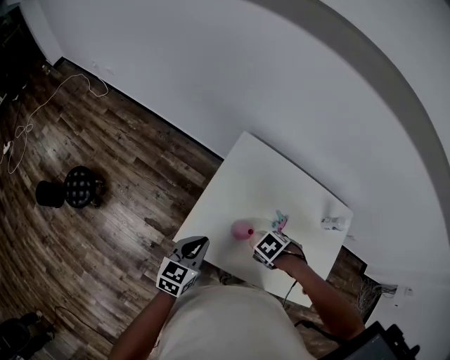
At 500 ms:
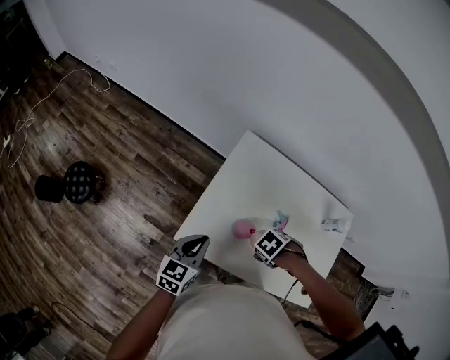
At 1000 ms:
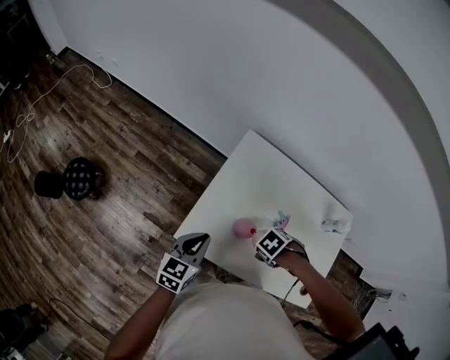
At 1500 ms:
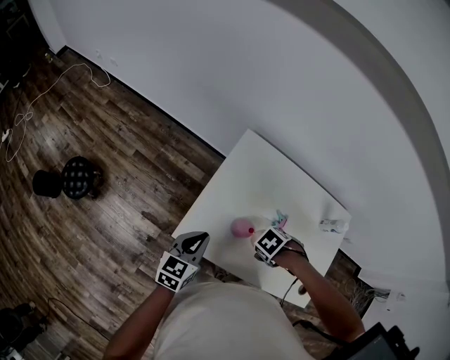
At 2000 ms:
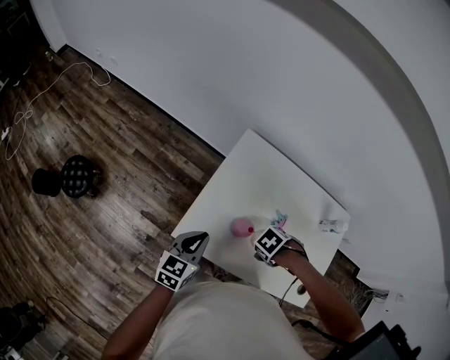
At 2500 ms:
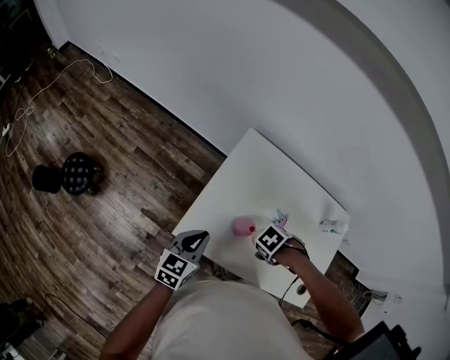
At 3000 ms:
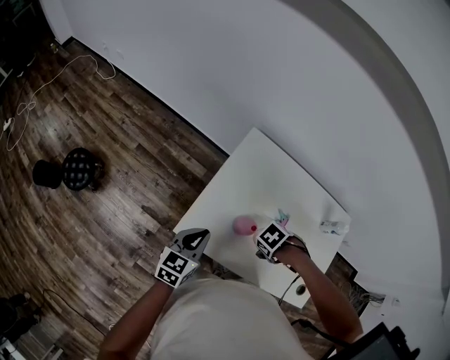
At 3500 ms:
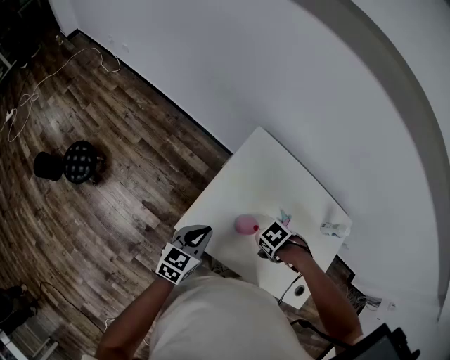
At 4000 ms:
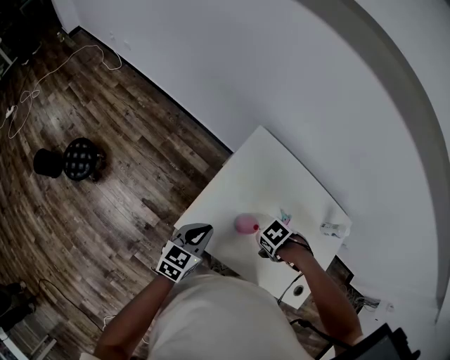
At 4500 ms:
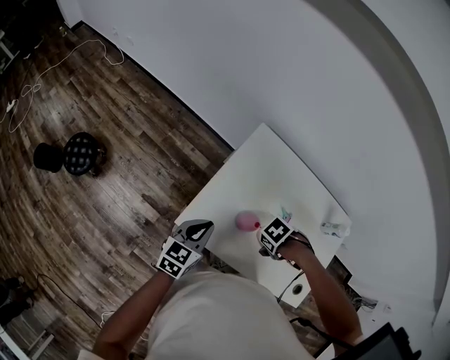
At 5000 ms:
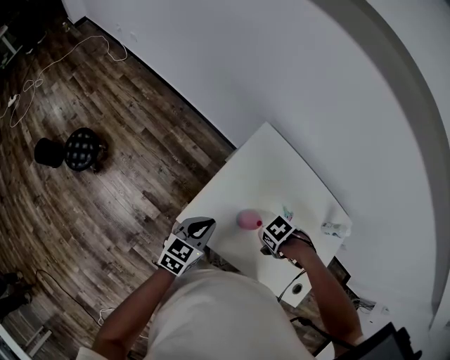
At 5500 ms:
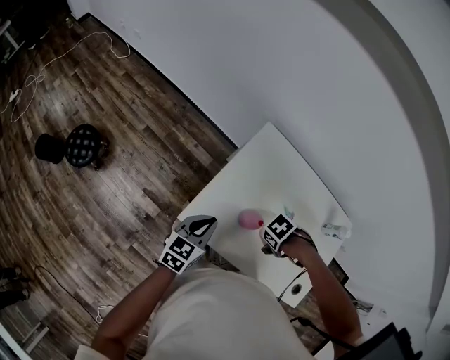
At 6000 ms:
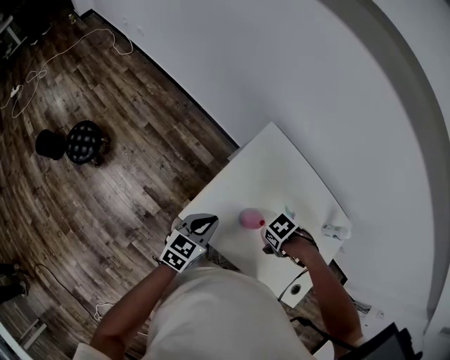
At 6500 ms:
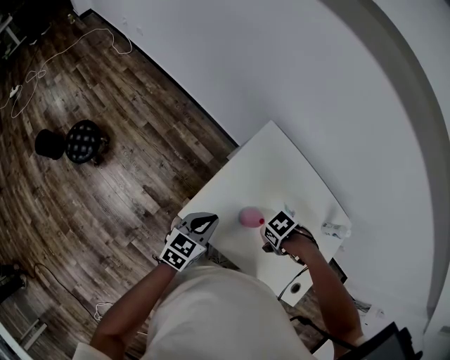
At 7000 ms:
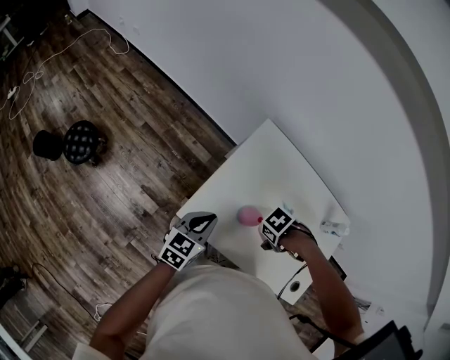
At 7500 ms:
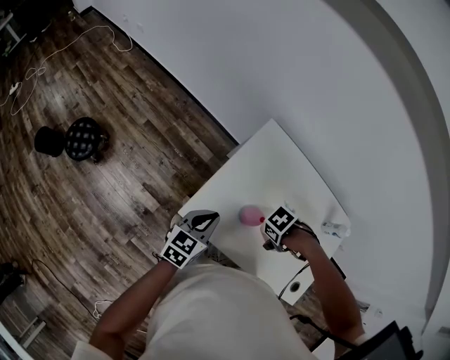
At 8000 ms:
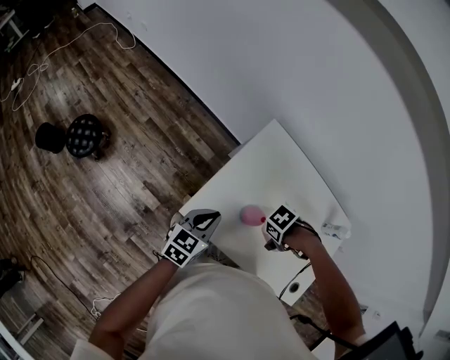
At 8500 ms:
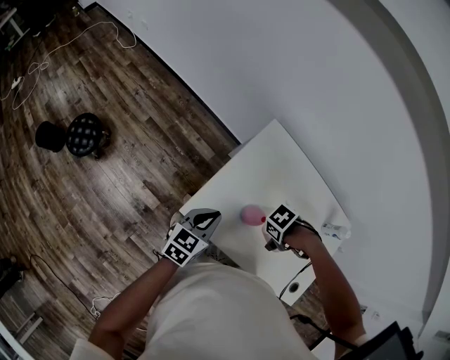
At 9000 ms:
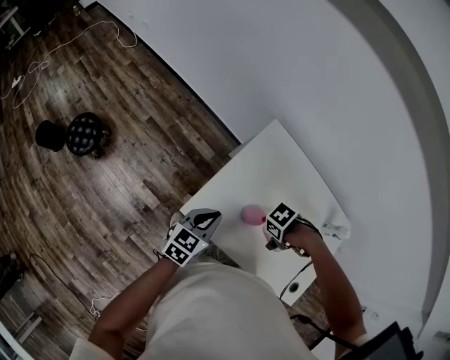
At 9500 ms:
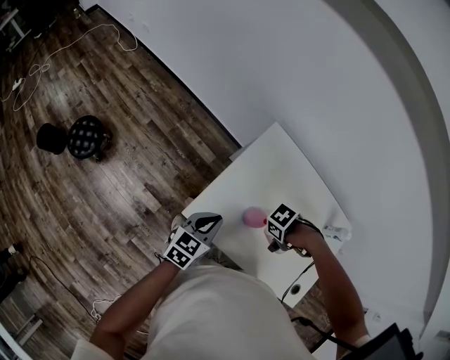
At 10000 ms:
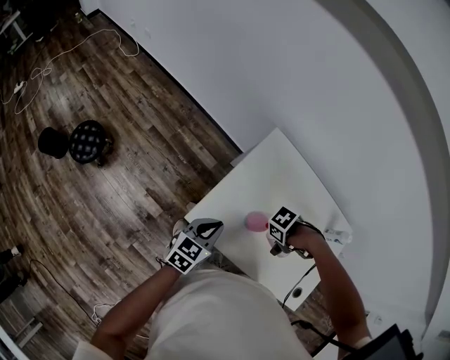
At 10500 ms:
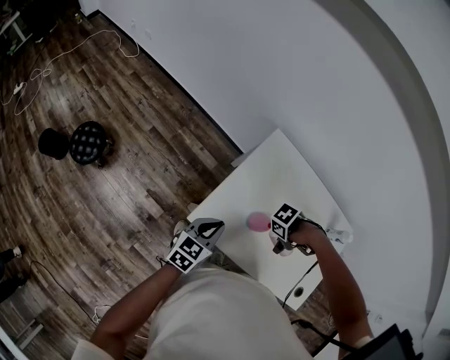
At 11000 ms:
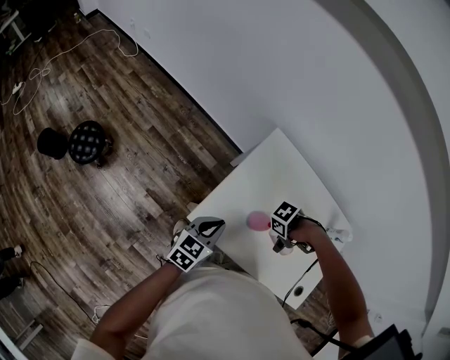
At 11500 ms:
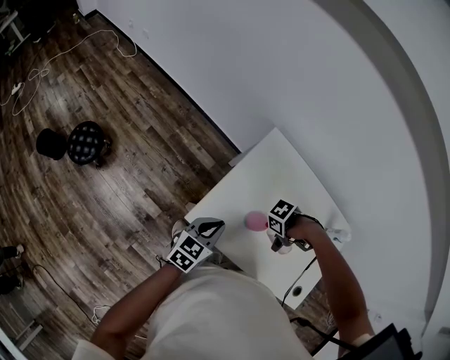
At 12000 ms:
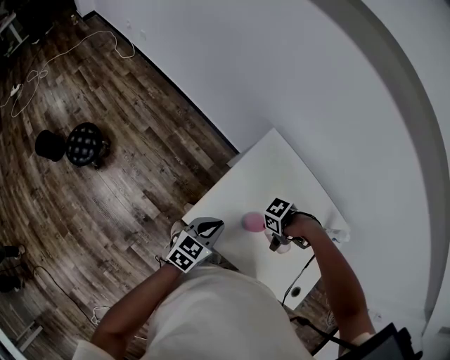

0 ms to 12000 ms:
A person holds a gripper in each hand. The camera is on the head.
0 ms to 4000 ms: The grippers make only small movements.
4000 ms to 6000 ms: The two grippers keep their place.
6000 ms to 12000 ms: The grippers move only a little.

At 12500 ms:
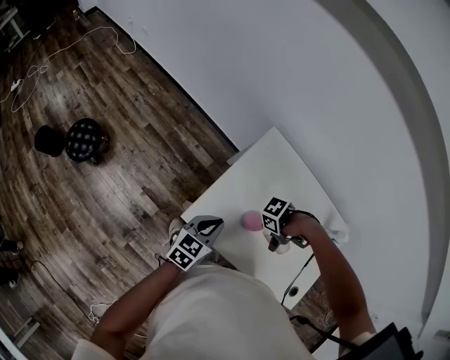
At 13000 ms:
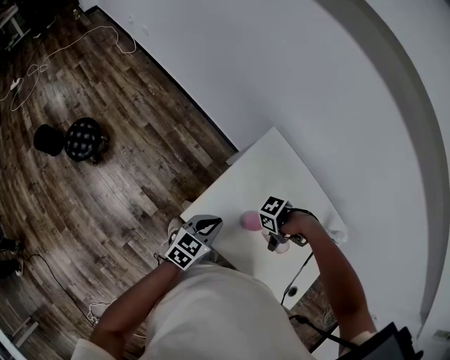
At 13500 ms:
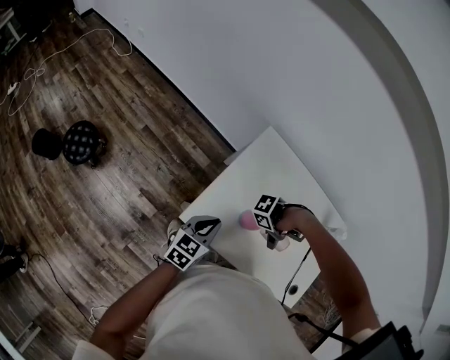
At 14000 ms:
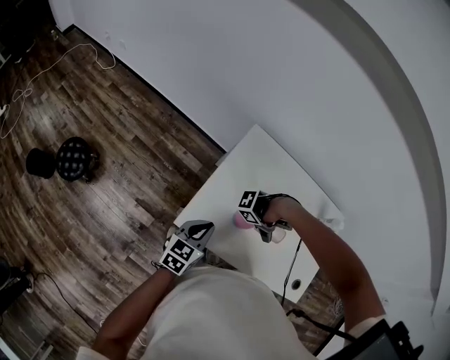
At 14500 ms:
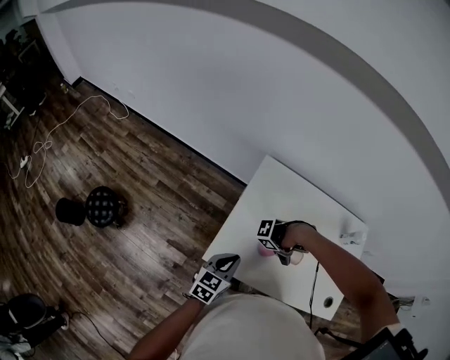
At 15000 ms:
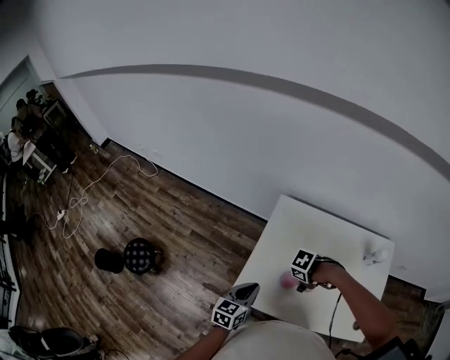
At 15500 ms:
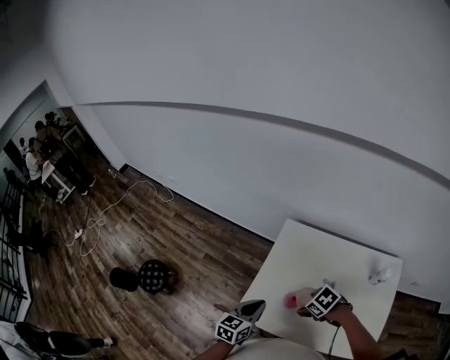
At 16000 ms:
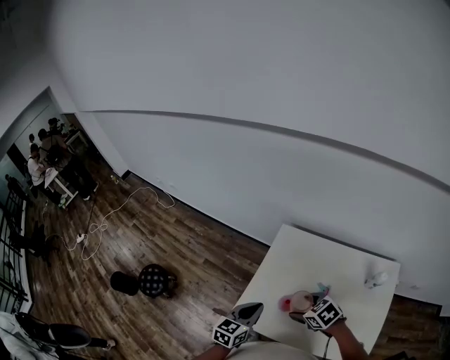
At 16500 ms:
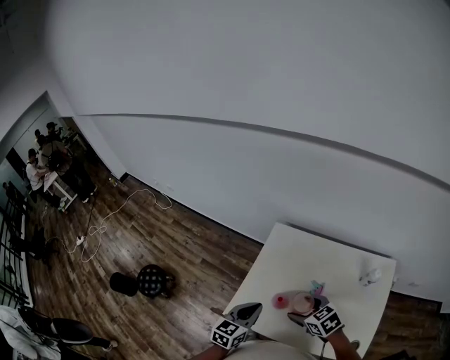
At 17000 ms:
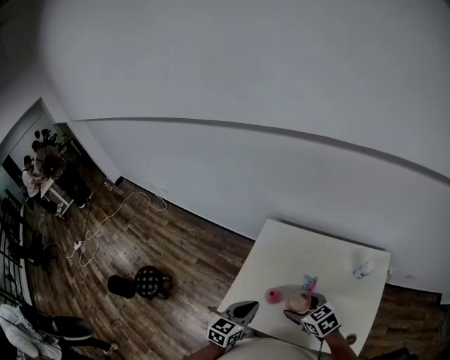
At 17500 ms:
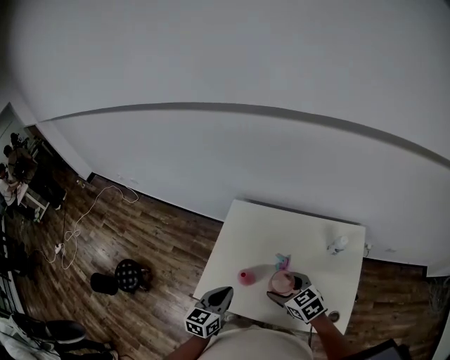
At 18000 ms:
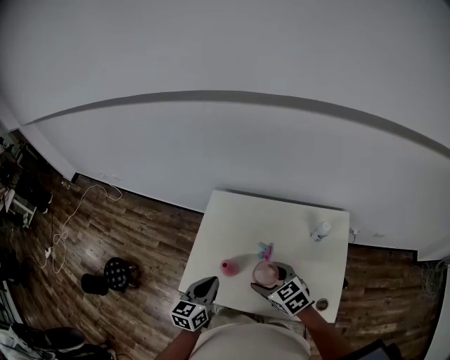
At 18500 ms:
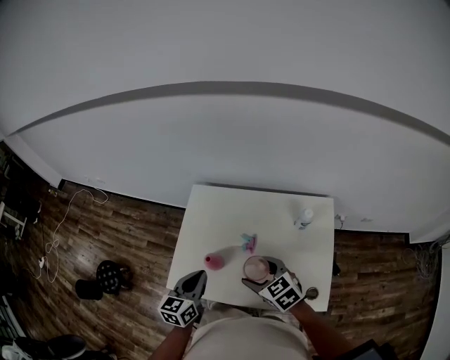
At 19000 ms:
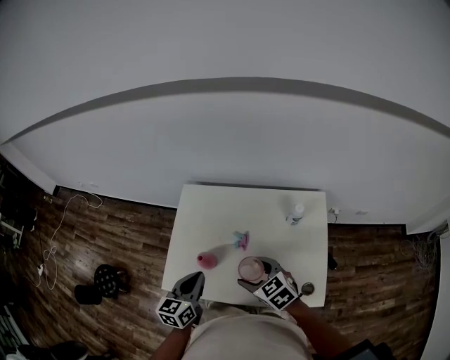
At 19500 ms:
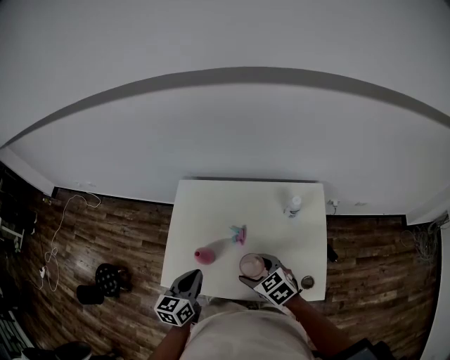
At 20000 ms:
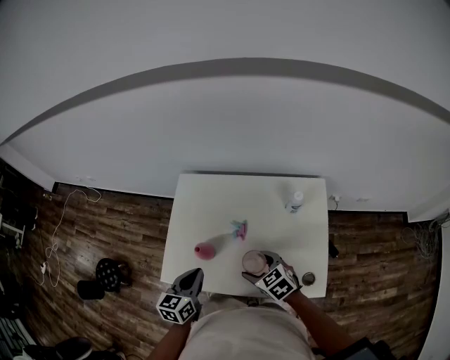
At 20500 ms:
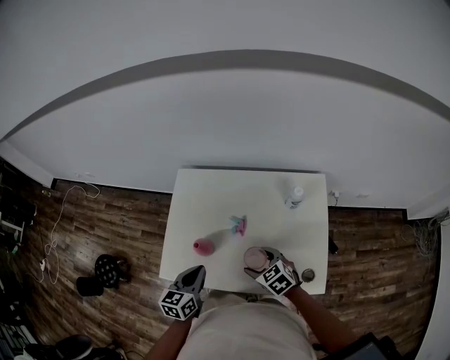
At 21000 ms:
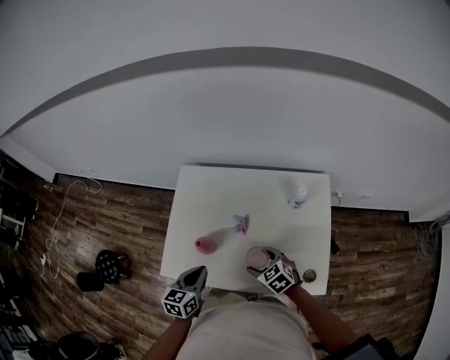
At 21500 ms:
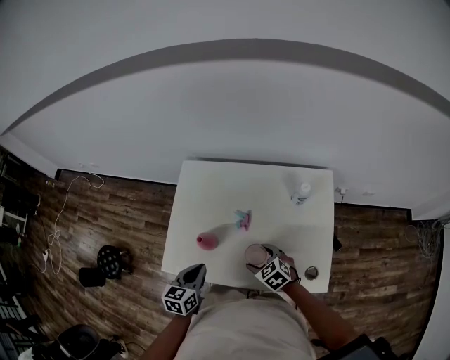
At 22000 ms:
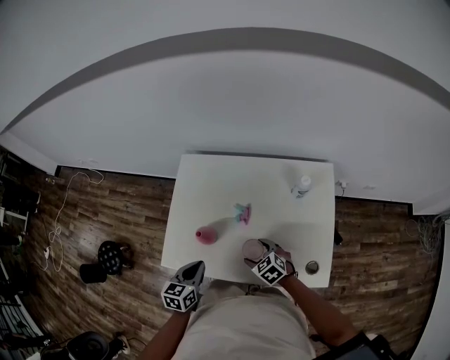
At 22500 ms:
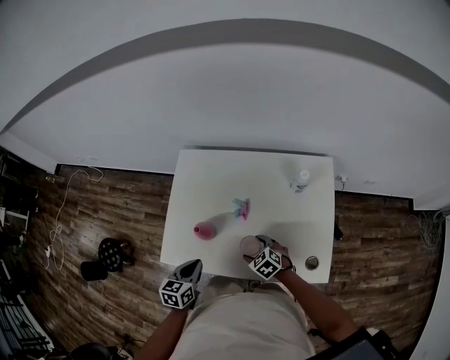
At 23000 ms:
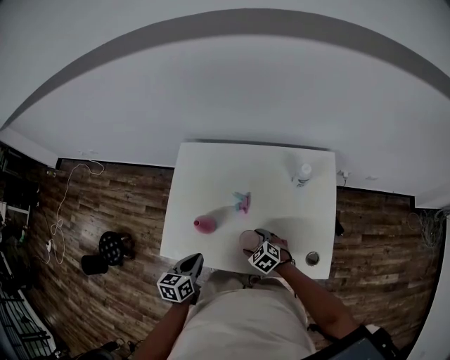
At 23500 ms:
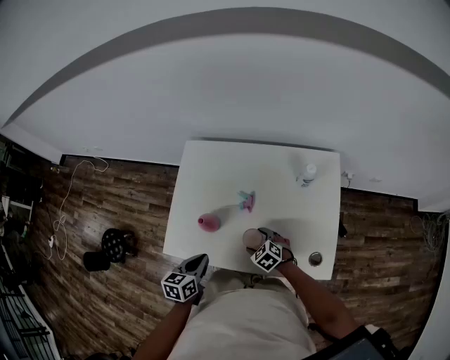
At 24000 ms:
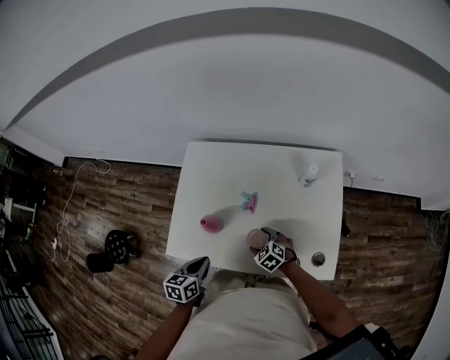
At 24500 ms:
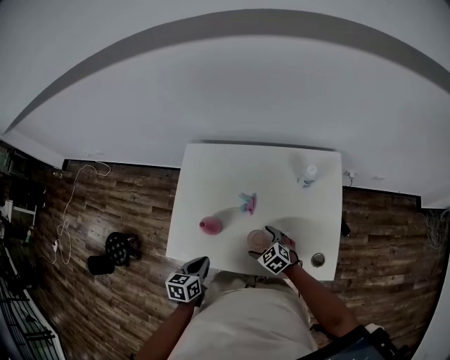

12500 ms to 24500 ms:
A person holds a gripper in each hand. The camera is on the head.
12500 ms to 14500 ms: The grippers make only small movements.
14500 ms to 16500 ms: Both grippers move upward, roughly 10 cm. The right gripper rotates some 100 degrees.
16500 ms to 18500 ms: The left gripper goes some 10 cm to the right, while the right gripper goes some 15 cm to the right and backward.
18500 ms to 20500 ms: The right gripper heads downward, covering approximately 10 cm. The left gripper moves downward, roughly 5 cm.
20500 ms to 22500 ms: The right gripper shifts some 10 cm downward, while the left gripper is displaced downward by approximately 5 cm.
22500 ms to 24500 ms: The grippers move only a little.

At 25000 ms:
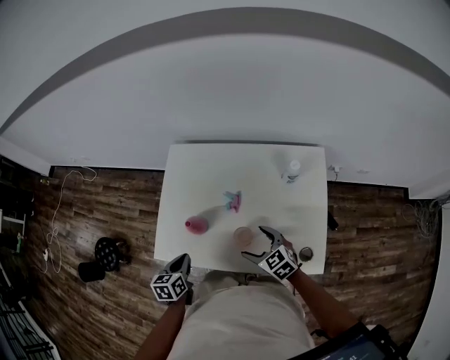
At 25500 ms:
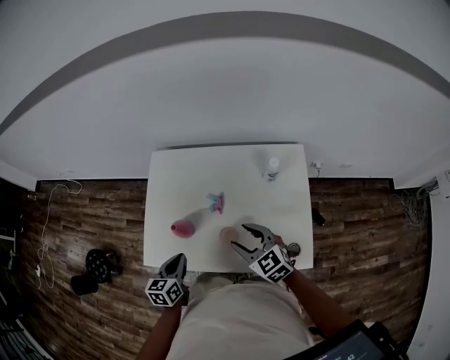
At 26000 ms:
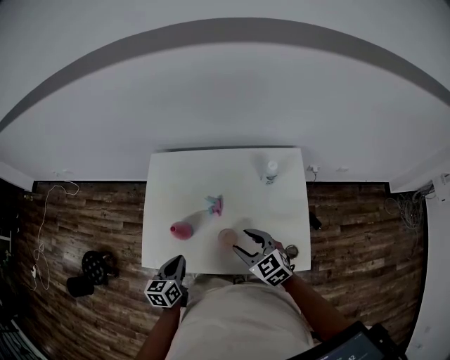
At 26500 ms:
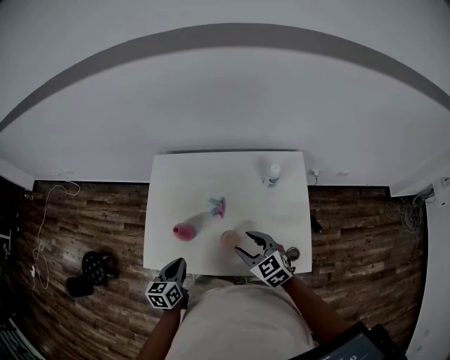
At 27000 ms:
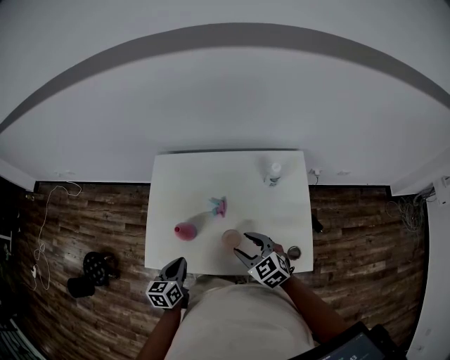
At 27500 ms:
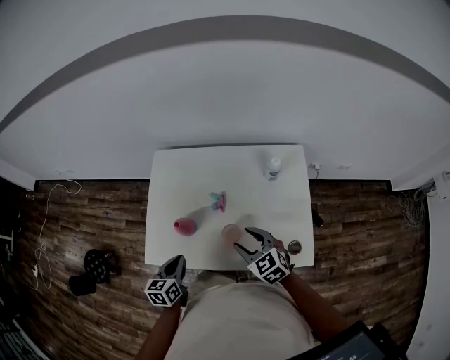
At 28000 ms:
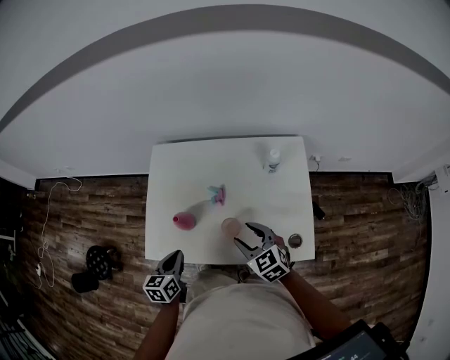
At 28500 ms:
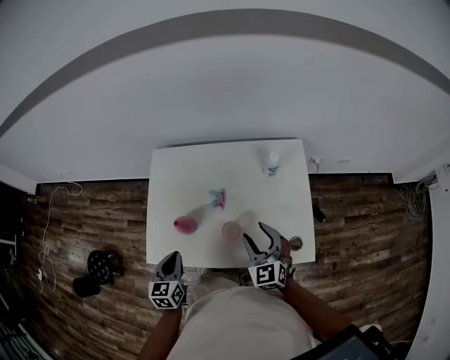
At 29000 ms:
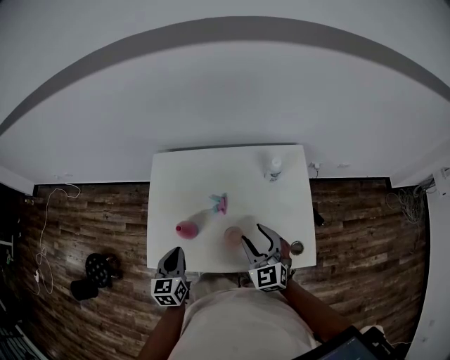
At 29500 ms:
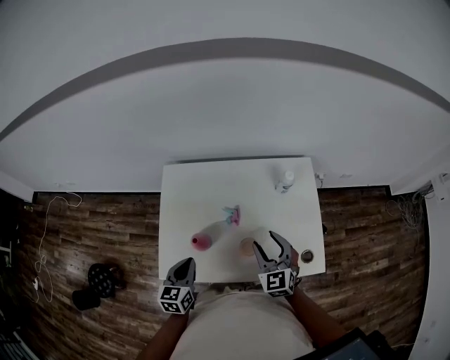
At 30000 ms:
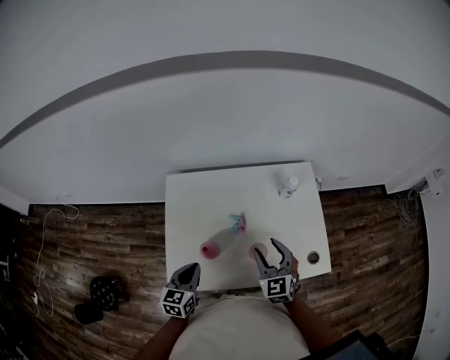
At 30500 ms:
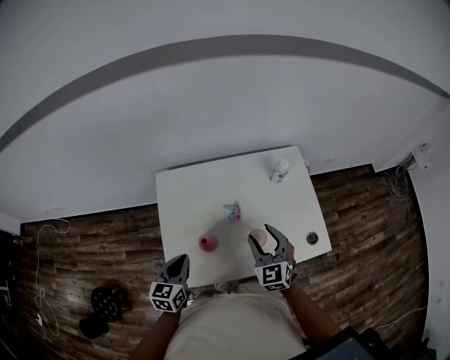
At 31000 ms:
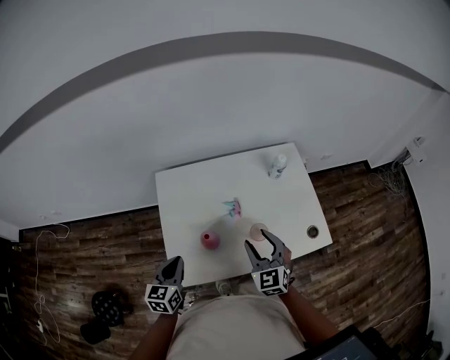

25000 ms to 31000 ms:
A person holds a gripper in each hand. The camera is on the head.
25000 ms to 27000 ms: The right gripper goes some 5 cm upward.
27000 ms to 29000 ms: The right gripper changes place by some 5 cm, and turns by about 30 degrees. The left gripper changes place by about 5 cm.
29000 ms to 31000 ms: Both grippers travel together to the left, about 15 cm. The left gripper changes its angle by roughly 20 degrees.
